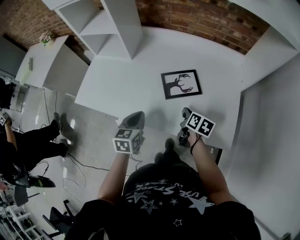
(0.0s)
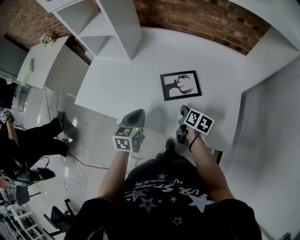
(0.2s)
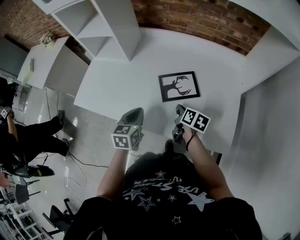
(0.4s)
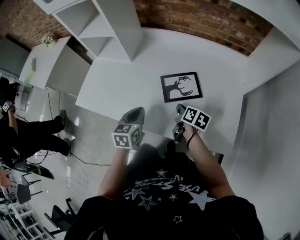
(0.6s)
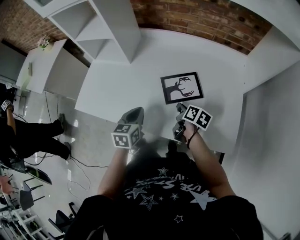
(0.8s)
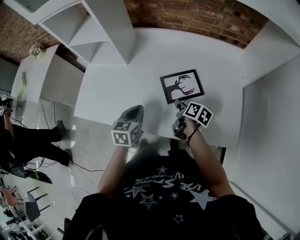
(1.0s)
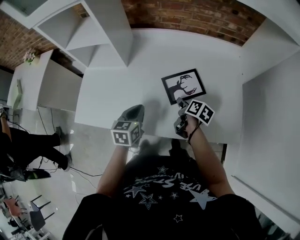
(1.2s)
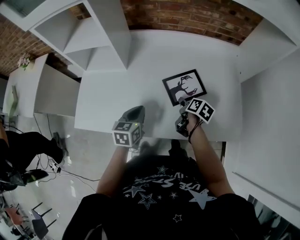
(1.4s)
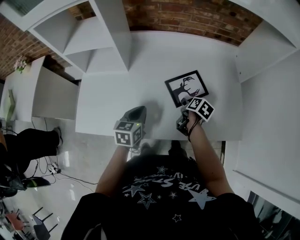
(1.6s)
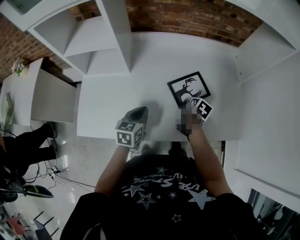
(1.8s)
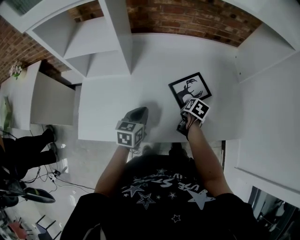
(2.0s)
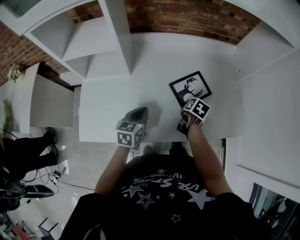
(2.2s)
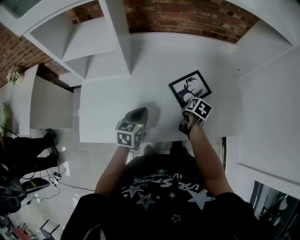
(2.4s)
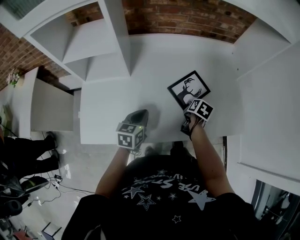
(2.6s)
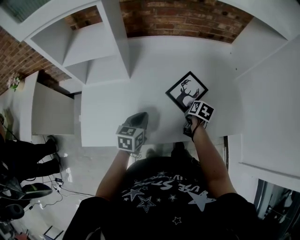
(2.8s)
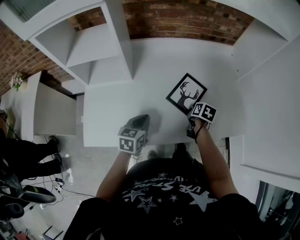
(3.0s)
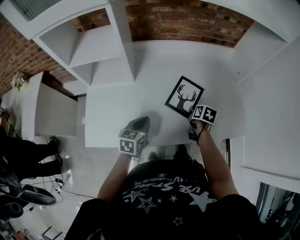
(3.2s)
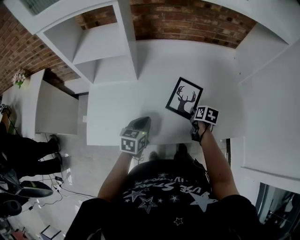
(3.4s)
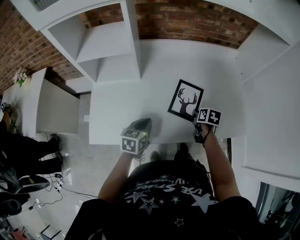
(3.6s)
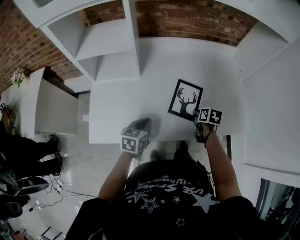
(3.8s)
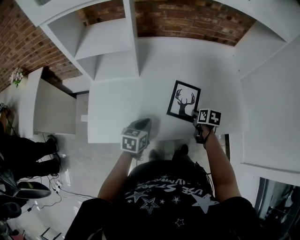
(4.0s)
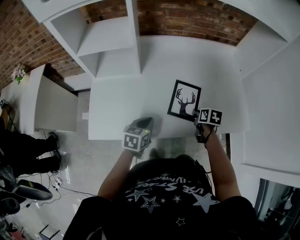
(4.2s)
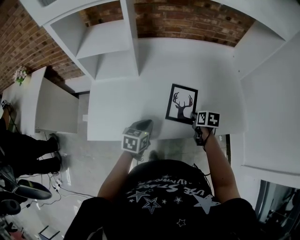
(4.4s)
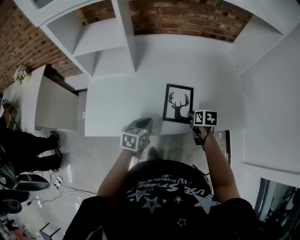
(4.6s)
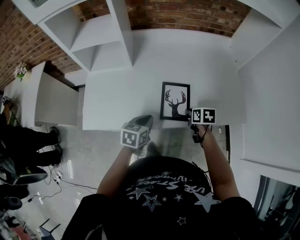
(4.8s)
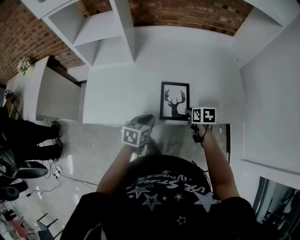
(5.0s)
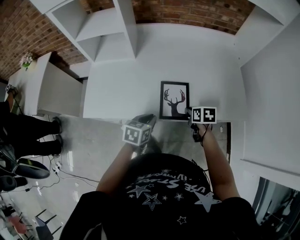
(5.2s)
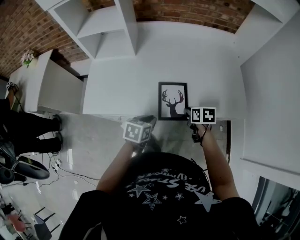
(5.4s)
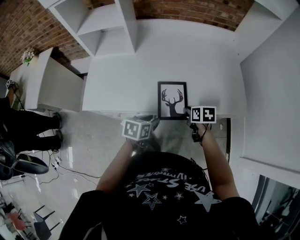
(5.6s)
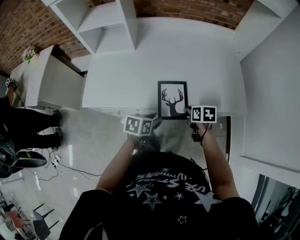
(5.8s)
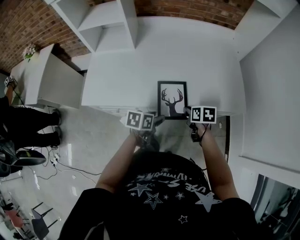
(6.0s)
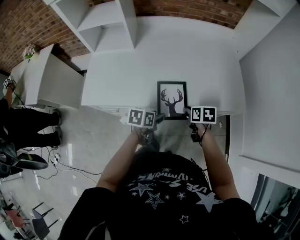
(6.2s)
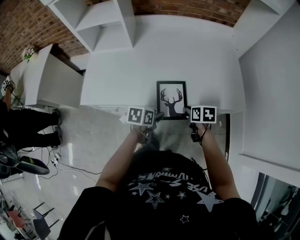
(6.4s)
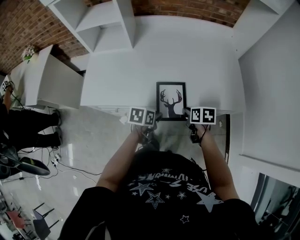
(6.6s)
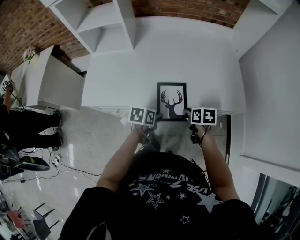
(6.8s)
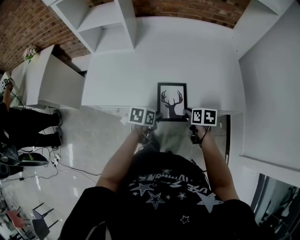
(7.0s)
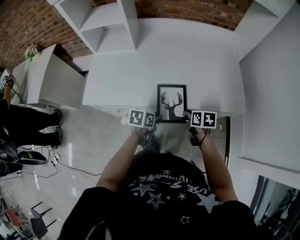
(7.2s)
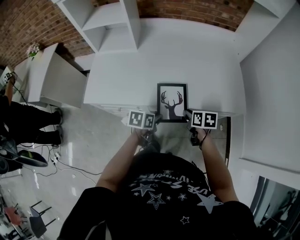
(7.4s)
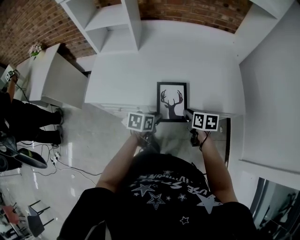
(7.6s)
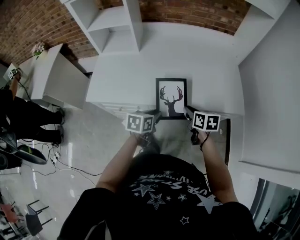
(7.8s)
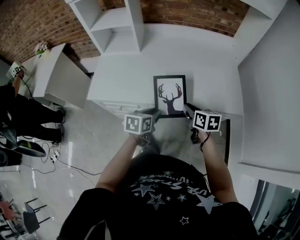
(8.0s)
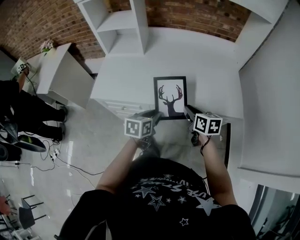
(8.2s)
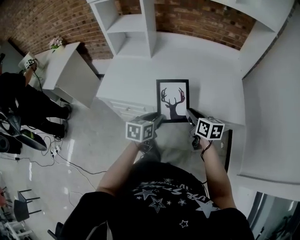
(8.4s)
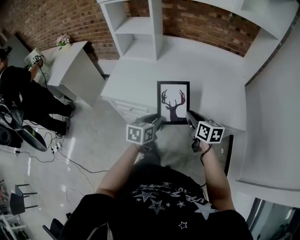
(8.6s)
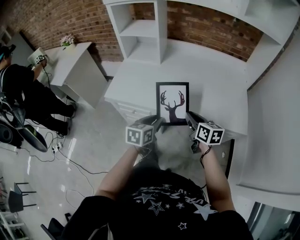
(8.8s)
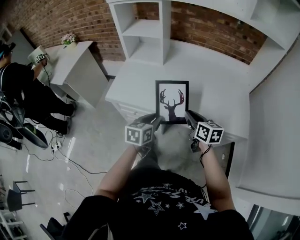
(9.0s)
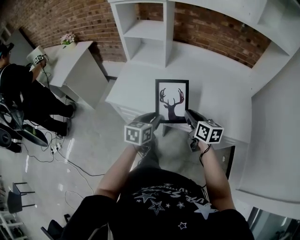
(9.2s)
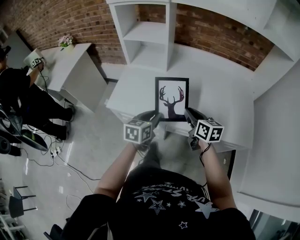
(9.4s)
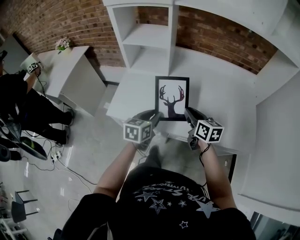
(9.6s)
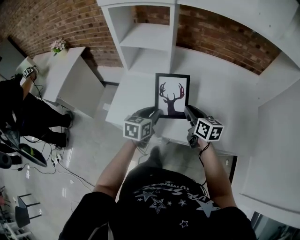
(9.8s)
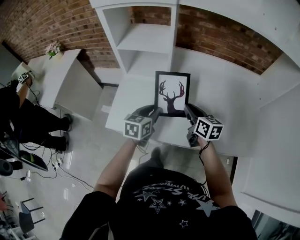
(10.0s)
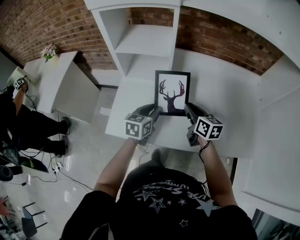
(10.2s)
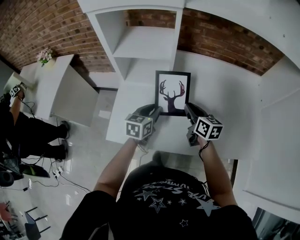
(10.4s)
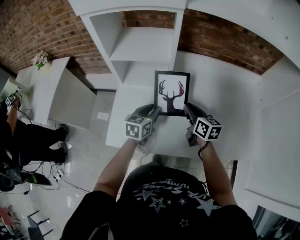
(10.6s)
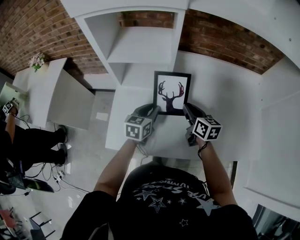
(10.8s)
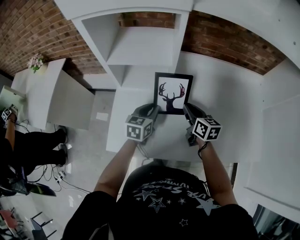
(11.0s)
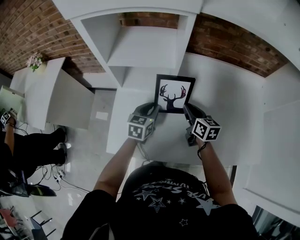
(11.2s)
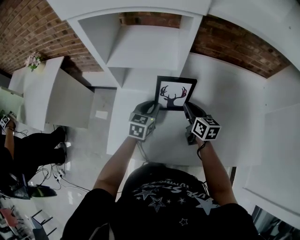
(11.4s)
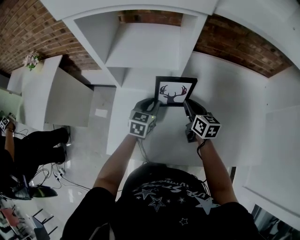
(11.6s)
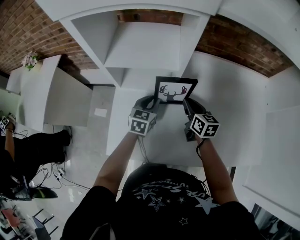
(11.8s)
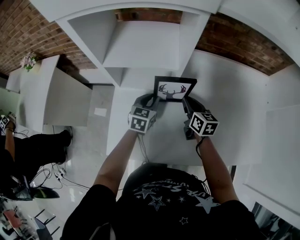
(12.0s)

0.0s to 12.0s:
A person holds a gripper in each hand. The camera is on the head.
0.0s to 1.6s: The left gripper changes place by roughly 10 cm, while the right gripper shifts by some 10 cm, rotates roughly 30 degrees, and opens its fingers.
1.6s to 3.0s: The right gripper closes up.
3.0s to 4.4s: Both grippers travel together backward, roughly 5 cm.
4.4s to 6.0s: The right gripper goes approximately 10 cm backward. Meanwhile the left gripper is displaced to the right and backward by some 15 cm, rotates about 20 degrees, and opens its fingers.
6.0s to 7.6s: The left gripper closes.
7.6s to 9.0s: The two grippers go some 10 cm upward and to the left. The left gripper changes its angle by about 30 degrees, while the right gripper swivels about 30 degrees.
9.0s to 10.4s: The two grippers go about 25 cm forward.
10.4s to 12.0s: The grippers both shift forward and downward by about 10 cm.

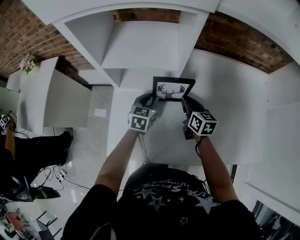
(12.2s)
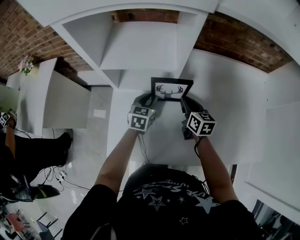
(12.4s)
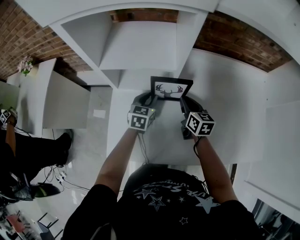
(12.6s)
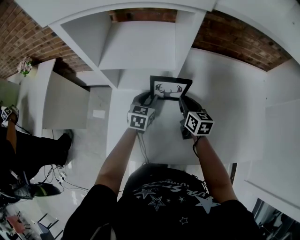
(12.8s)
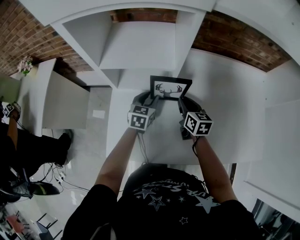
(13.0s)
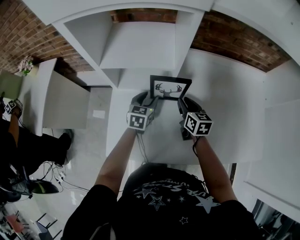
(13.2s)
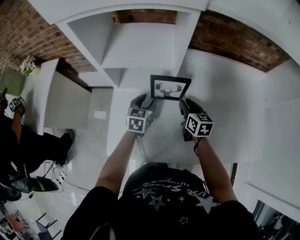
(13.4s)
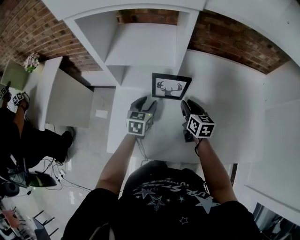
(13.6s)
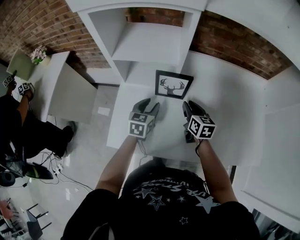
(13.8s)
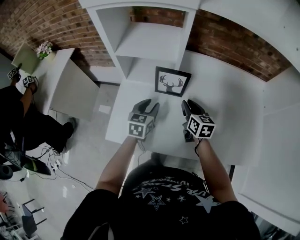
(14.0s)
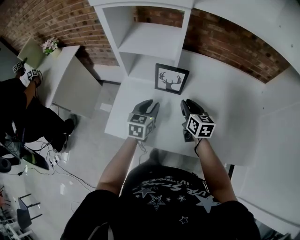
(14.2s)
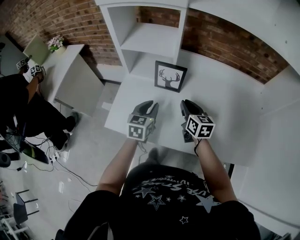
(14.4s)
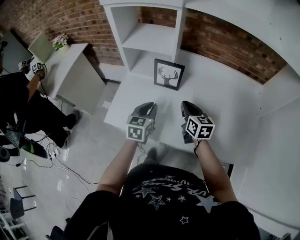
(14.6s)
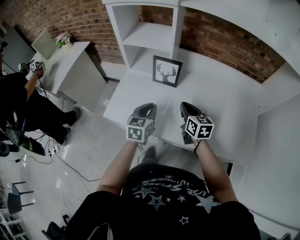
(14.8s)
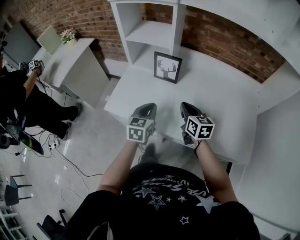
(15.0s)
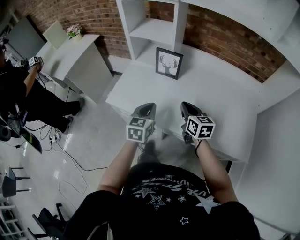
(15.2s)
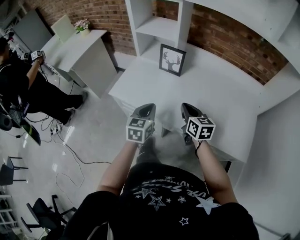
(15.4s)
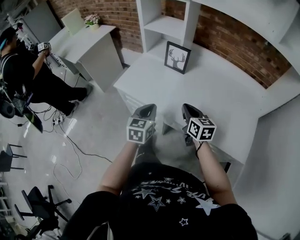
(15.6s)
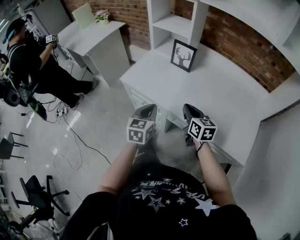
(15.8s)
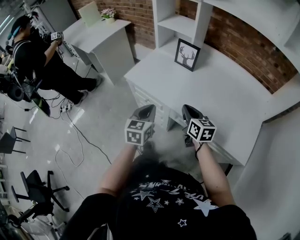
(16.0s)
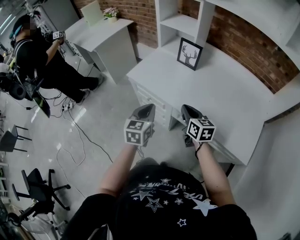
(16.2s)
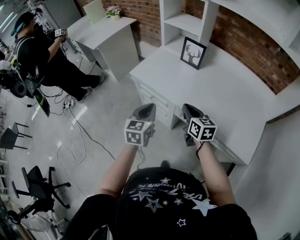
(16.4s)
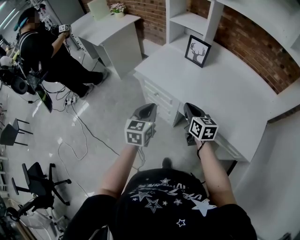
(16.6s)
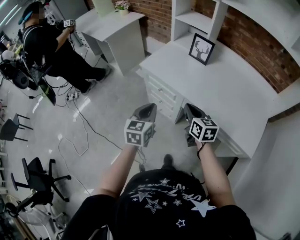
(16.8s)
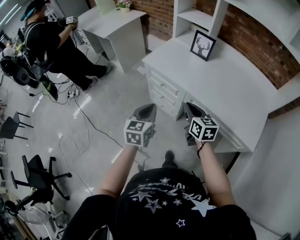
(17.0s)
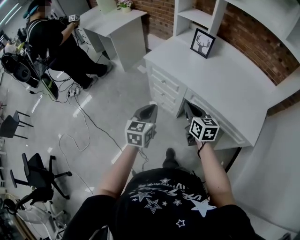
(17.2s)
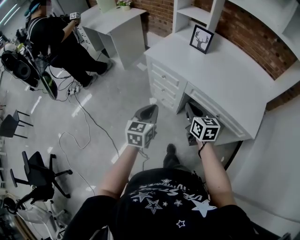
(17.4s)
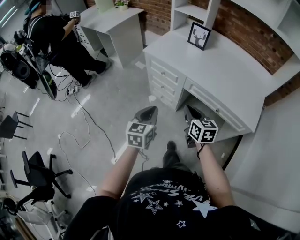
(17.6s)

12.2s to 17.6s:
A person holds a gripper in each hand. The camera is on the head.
12.2s to 13.6s: The left gripper opens.
13.6s to 15.0s: The left gripper heads backward, covering roughly 20 cm, and closes. The right gripper is displaced backward and upward by roughly 15 cm, and closes its fingers.
15.0s to 16.2s: Both grippers move backward, some 15 cm.
16.2s to 17.6s: The left gripper travels backward by roughly 20 cm. The right gripper heads backward and to the left, covering some 20 cm.

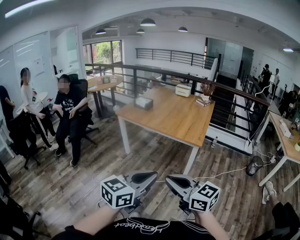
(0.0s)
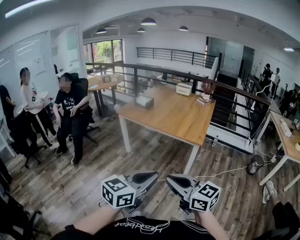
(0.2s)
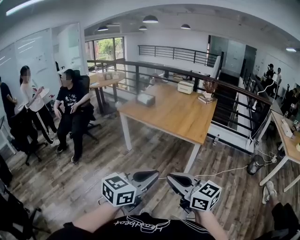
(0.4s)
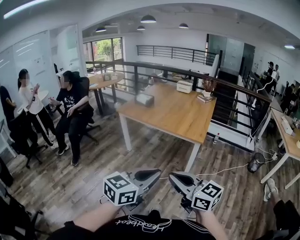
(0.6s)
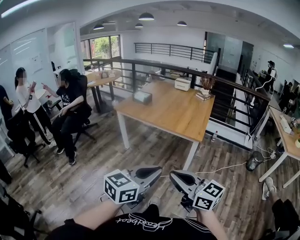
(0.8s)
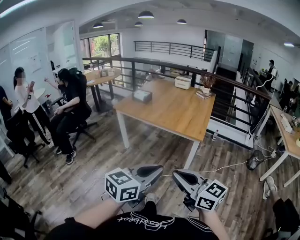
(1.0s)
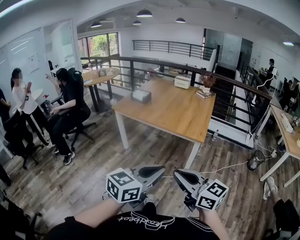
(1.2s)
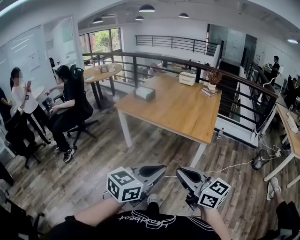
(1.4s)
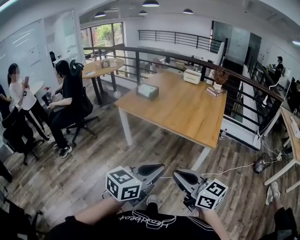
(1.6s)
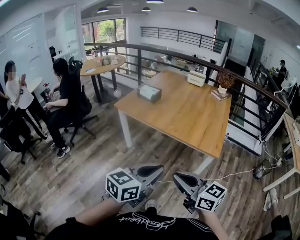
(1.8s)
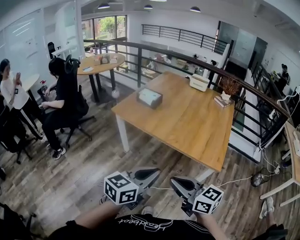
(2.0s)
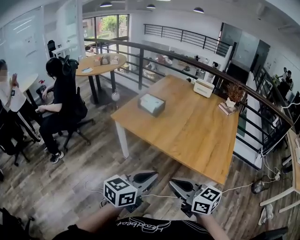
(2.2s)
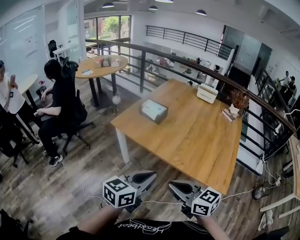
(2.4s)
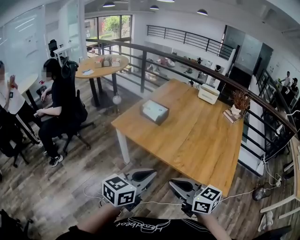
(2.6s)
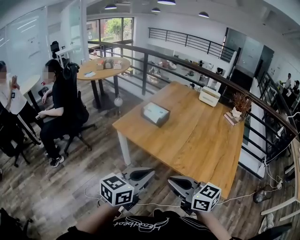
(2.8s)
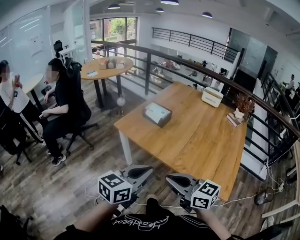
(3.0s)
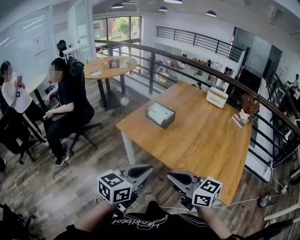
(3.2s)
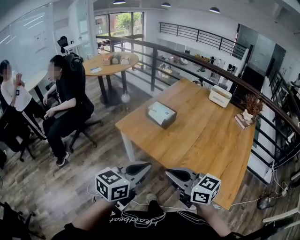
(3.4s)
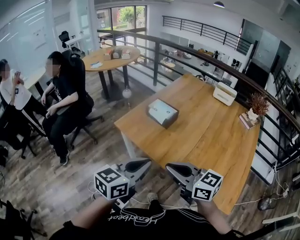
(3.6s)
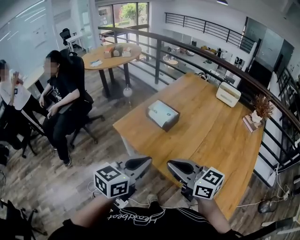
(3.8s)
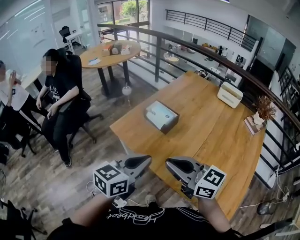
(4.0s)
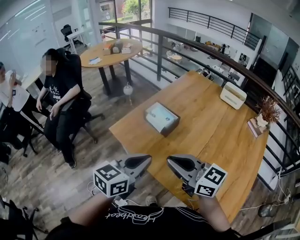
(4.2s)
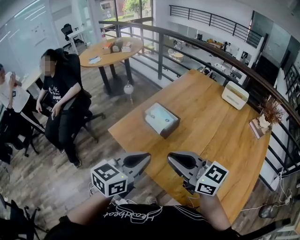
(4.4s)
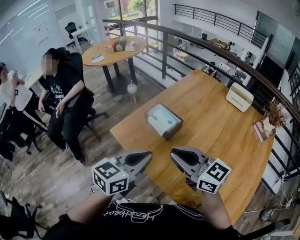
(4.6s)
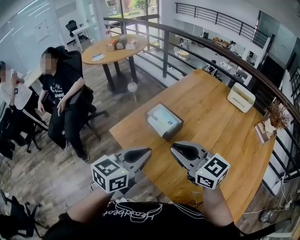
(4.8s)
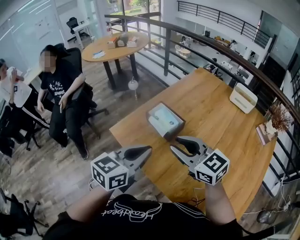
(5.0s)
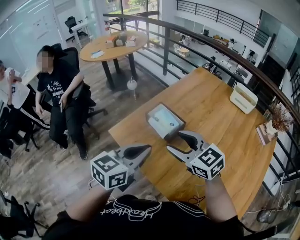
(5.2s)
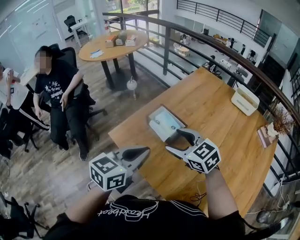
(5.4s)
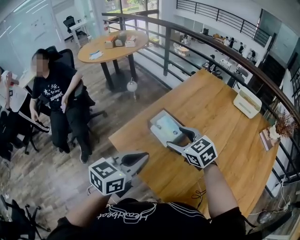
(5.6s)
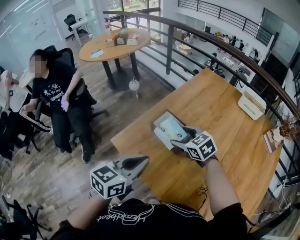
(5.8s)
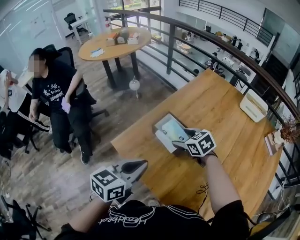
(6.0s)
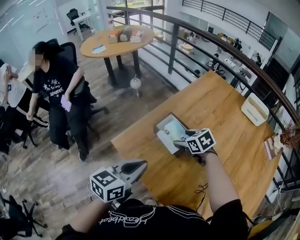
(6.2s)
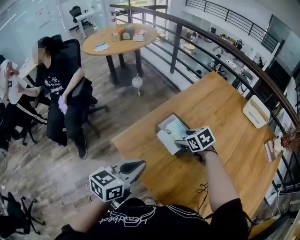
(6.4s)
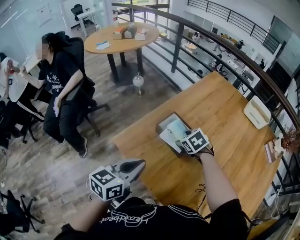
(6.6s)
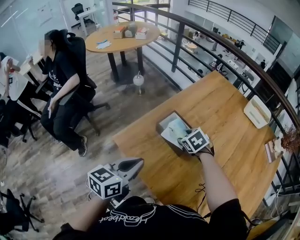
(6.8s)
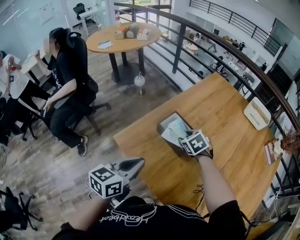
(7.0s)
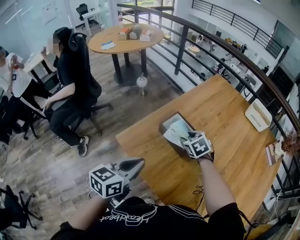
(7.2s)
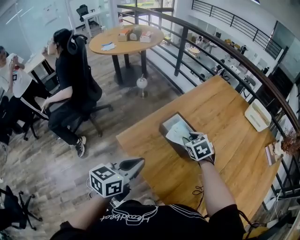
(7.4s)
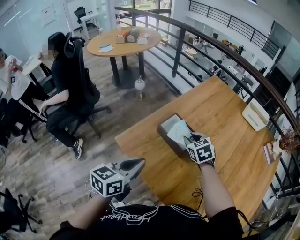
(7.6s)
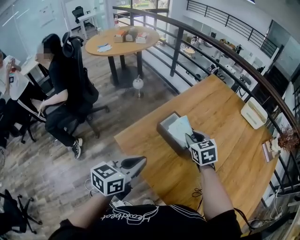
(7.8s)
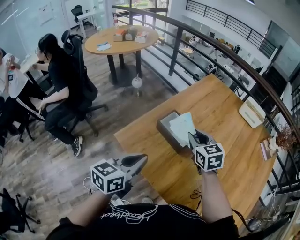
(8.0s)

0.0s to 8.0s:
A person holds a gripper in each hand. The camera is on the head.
0.0s to 1.6s: Both grippers move forward, about 20 cm.
1.6s to 3.2s: Both grippers are carried forward, about 40 cm.
3.2s to 4.8s: Both grippers travel together forward, roughly 35 cm.
4.8s to 6.4s: The right gripper goes about 35 cm forward and downward, tilts its fingers roughly 50 degrees downward, and opens its fingers, while the left gripper travels forward, to the left and downward by approximately 15 cm.
6.4s to 8.0s: The right gripper goes roughly 10 cm upward, rotates approximately 30 degrees, and closes.
